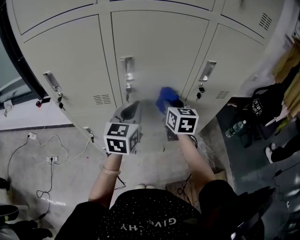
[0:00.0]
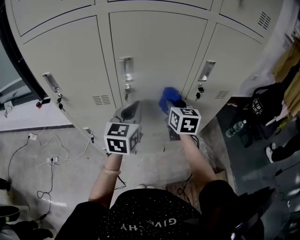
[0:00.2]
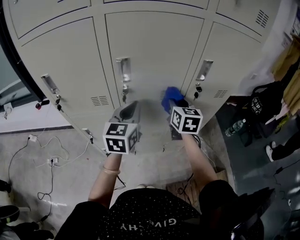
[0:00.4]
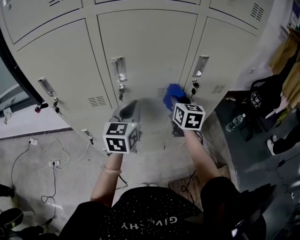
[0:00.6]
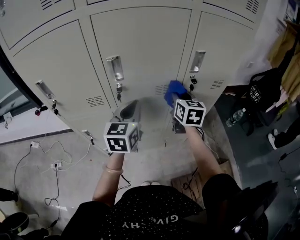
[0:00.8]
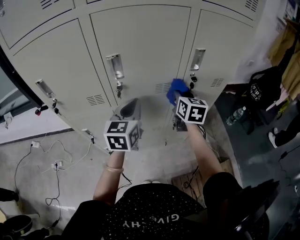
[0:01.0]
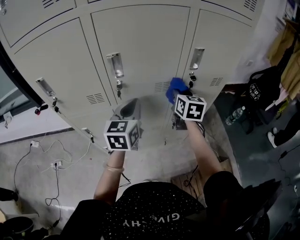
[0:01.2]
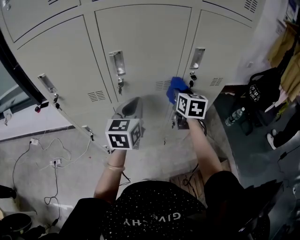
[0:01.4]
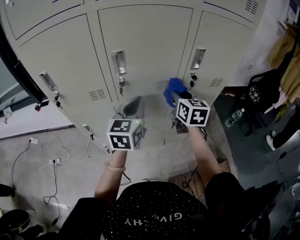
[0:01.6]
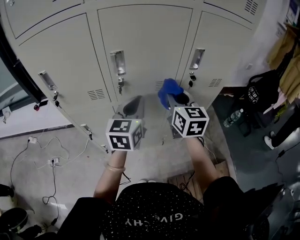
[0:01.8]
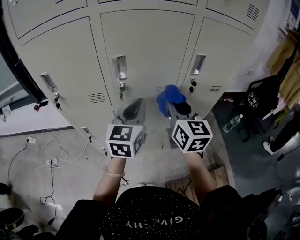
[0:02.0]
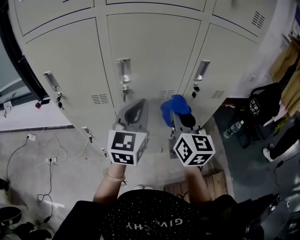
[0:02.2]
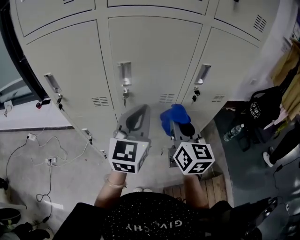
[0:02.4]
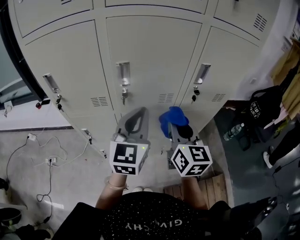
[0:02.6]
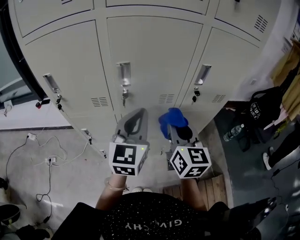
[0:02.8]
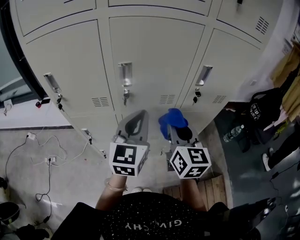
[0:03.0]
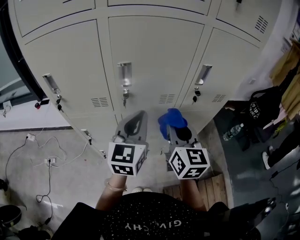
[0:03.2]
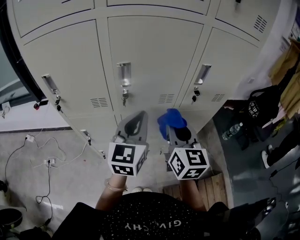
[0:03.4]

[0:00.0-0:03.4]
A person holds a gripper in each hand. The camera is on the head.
0:00.0 to 0:01.6: The right gripper travels to the right by approximately 5 cm.
0:01.6 to 0:03.4: The right gripper goes approximately 10 cm backward. The left gripper shifts by about 5 cm.

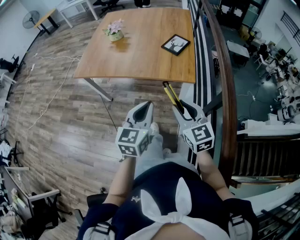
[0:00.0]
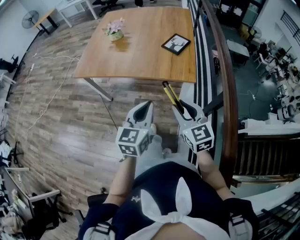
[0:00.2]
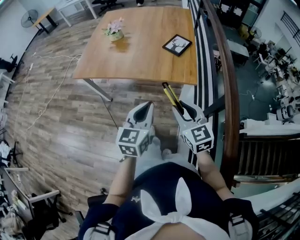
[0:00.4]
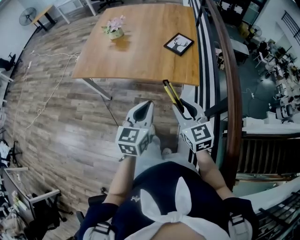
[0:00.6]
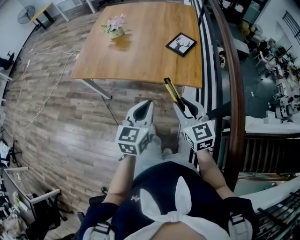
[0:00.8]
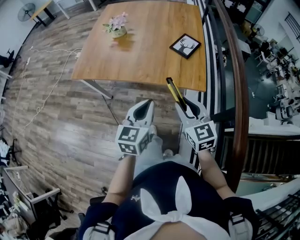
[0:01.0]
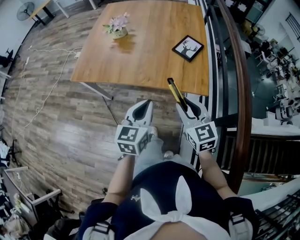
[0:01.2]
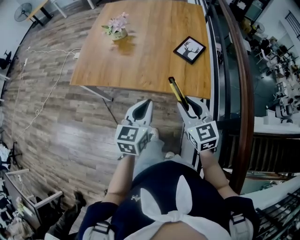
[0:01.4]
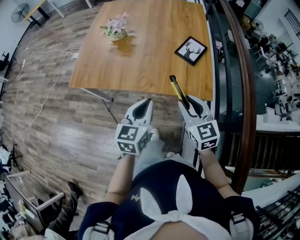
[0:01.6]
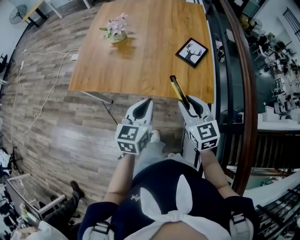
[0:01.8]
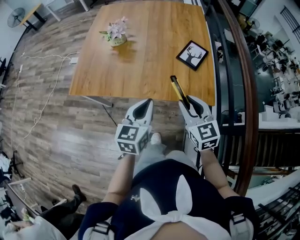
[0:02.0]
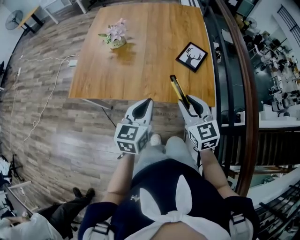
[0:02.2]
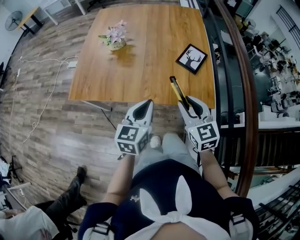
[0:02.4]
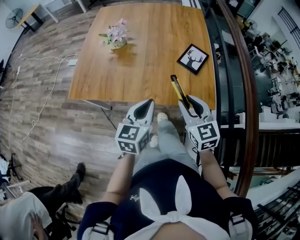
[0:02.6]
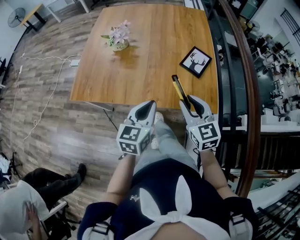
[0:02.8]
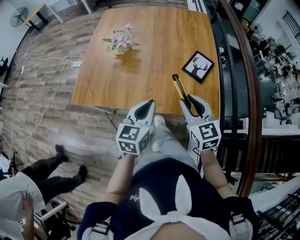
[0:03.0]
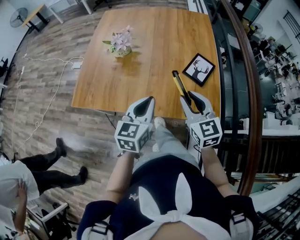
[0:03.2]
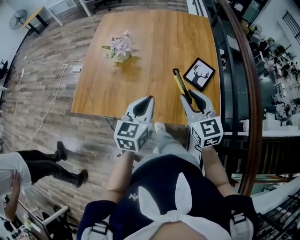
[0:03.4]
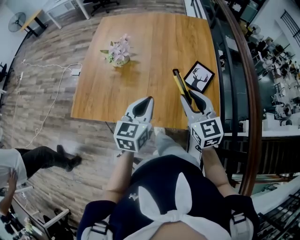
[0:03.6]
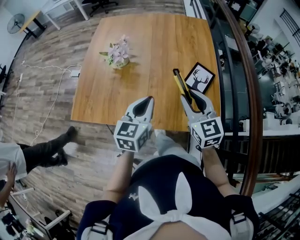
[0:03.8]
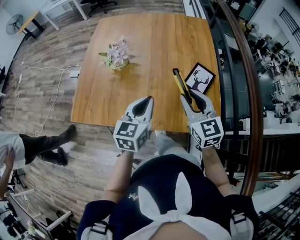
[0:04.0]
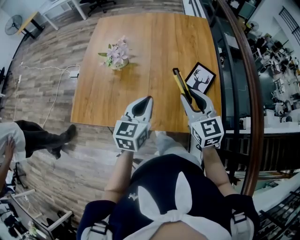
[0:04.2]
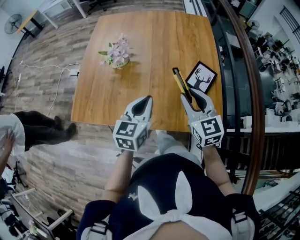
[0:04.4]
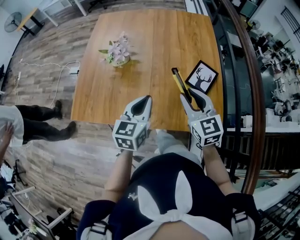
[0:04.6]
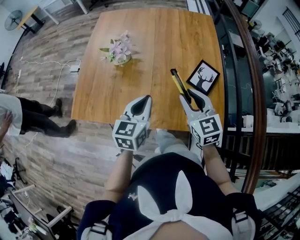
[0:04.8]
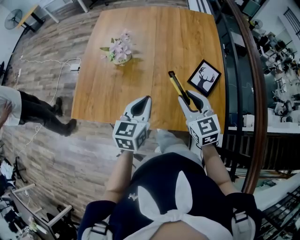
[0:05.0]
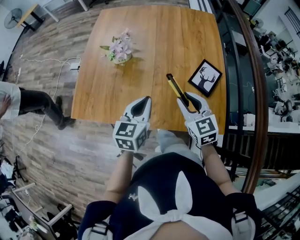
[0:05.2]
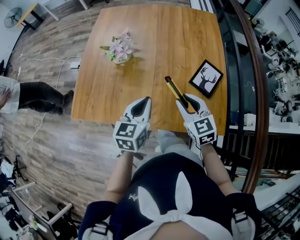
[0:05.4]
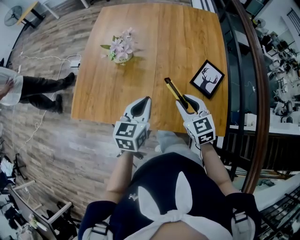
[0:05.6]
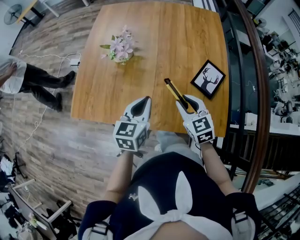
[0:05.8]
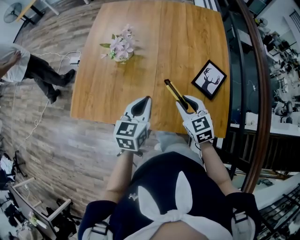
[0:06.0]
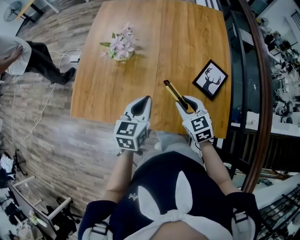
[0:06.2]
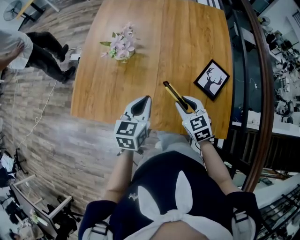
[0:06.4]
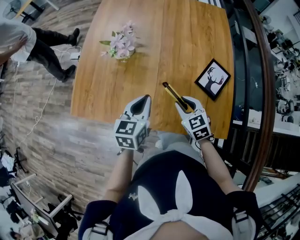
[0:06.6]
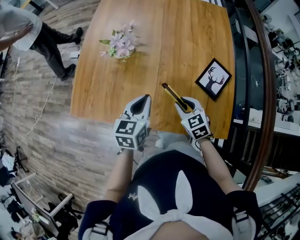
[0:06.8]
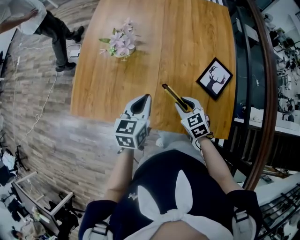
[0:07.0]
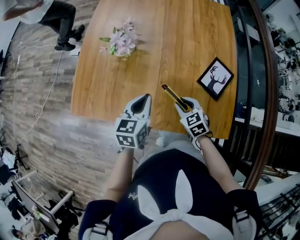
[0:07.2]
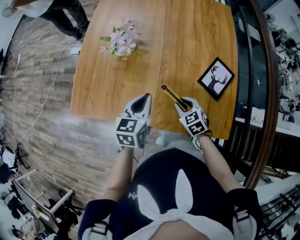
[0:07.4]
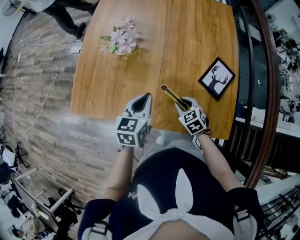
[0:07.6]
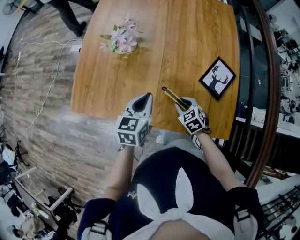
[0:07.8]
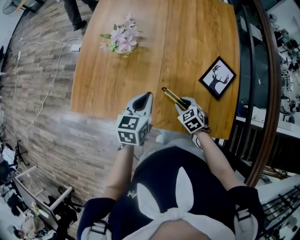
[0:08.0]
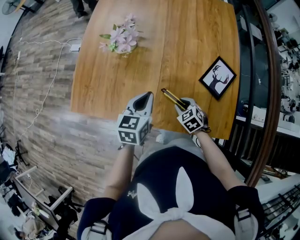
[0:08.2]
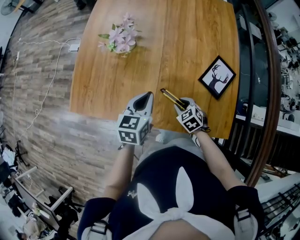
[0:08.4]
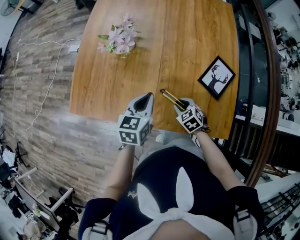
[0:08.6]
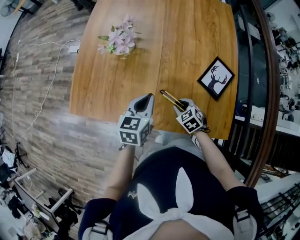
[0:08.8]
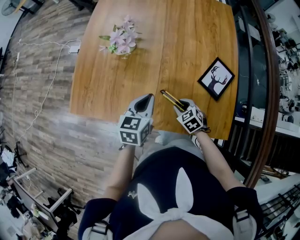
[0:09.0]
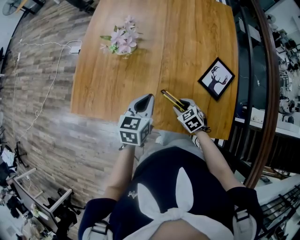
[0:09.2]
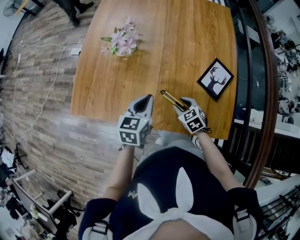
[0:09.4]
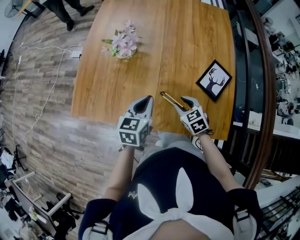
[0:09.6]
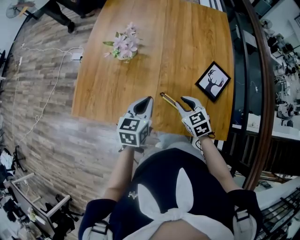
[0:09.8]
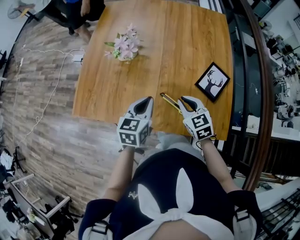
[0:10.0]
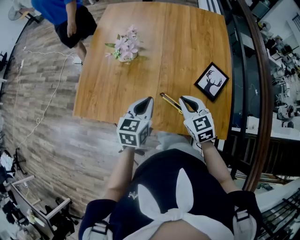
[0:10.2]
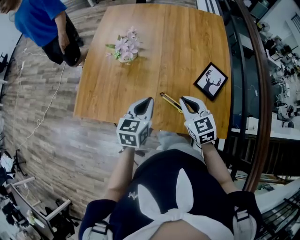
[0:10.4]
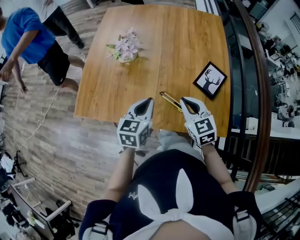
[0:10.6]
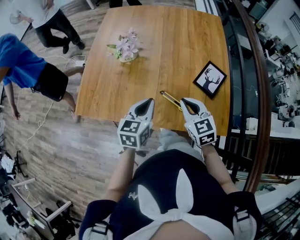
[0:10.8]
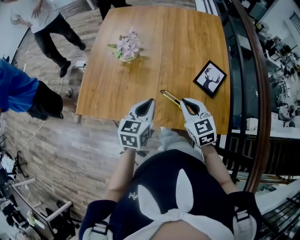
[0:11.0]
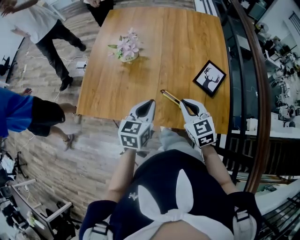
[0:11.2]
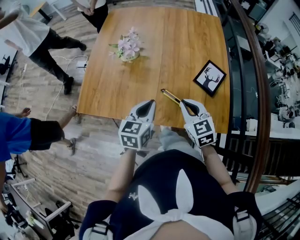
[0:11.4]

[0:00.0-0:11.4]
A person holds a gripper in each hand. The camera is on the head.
0:00.0 to 0:01.4: The right gripper goes some 20 cm forward; the left gripper goes approximately 20 cm forward and to the left.
0:01.4 to 0:02.8: The grippers both shift forward by roughly 10 cm.
0:02.8 to 0:04.2: The grippers both shift forward by some 15 cm.
0:04.2 to 0:05.6: The left gripper shifts by about 5 cm; the right gripper heads downward, covering approximately 10 cm.
0:05.6 to 0:07.2: The left gripper moves about 5 cm, while the right gripper is displaced downward by about 15 cm.
0:07.2 to 0:08.6: The right gripper goes roughly 5 cm downward.
0:08.6 to 0:10.0: The right gripper is displaced upward by some 15 cm, and changes its angle by some 20 degrees.
0:10.0 to 0:11.4: The left gripper shifts some 5 cm backward. The right gripper heads backward and upward, covering roughly 10 cm.

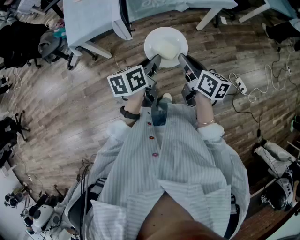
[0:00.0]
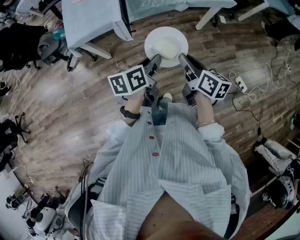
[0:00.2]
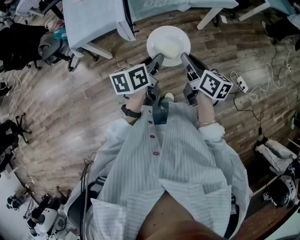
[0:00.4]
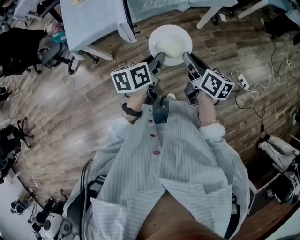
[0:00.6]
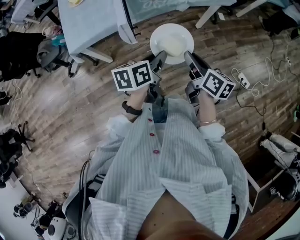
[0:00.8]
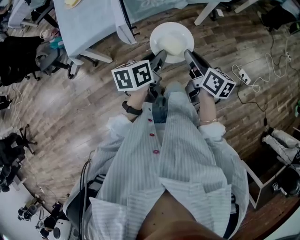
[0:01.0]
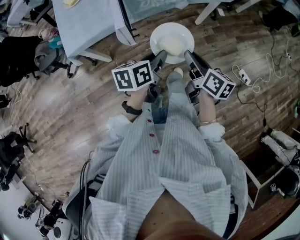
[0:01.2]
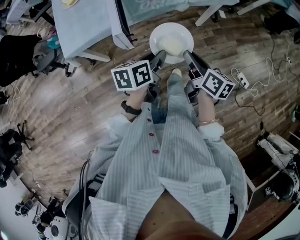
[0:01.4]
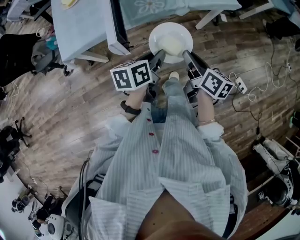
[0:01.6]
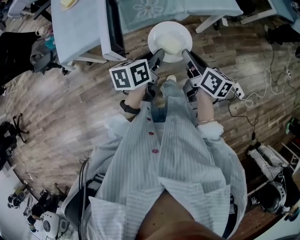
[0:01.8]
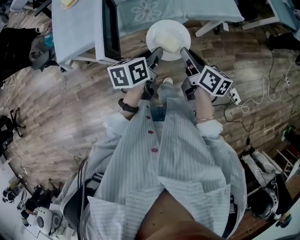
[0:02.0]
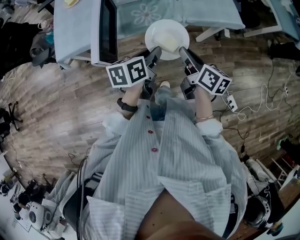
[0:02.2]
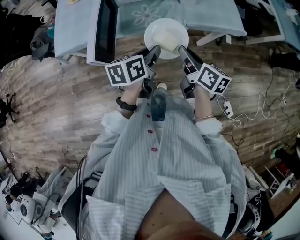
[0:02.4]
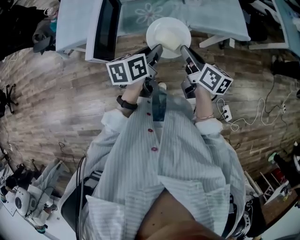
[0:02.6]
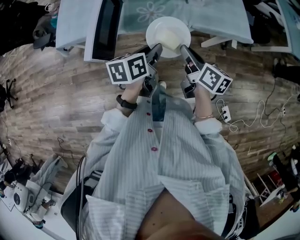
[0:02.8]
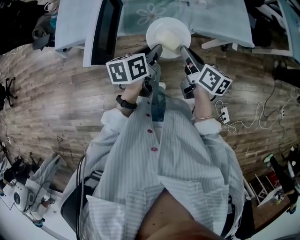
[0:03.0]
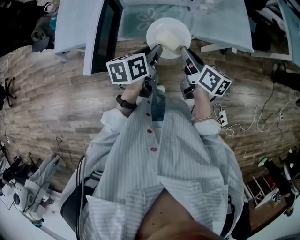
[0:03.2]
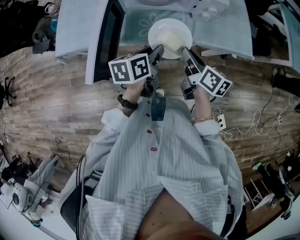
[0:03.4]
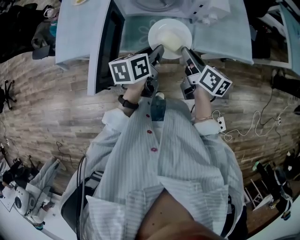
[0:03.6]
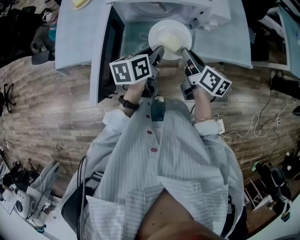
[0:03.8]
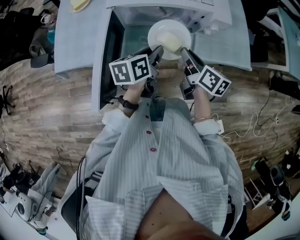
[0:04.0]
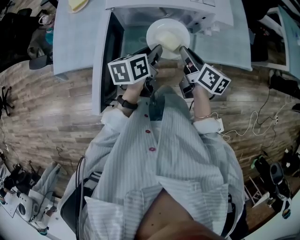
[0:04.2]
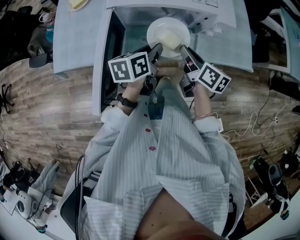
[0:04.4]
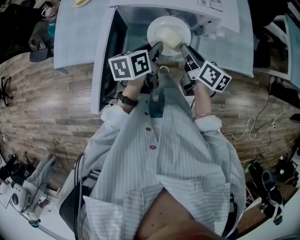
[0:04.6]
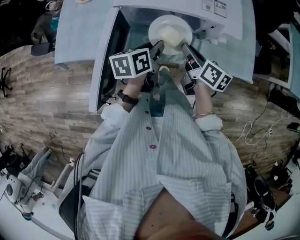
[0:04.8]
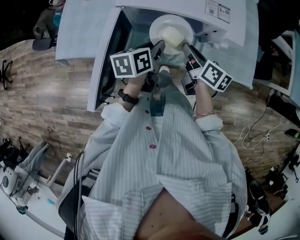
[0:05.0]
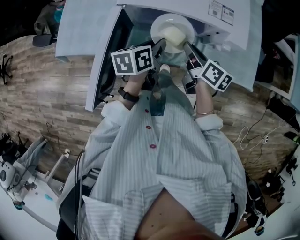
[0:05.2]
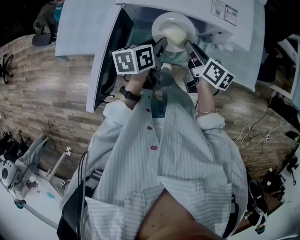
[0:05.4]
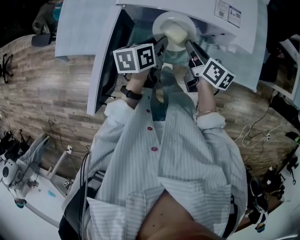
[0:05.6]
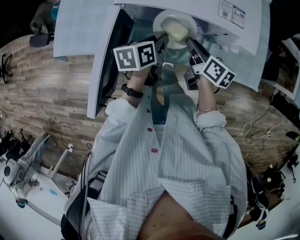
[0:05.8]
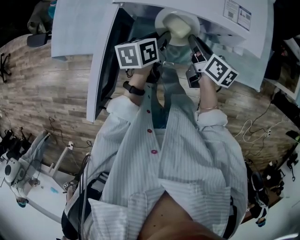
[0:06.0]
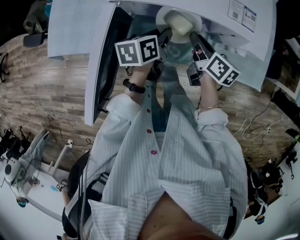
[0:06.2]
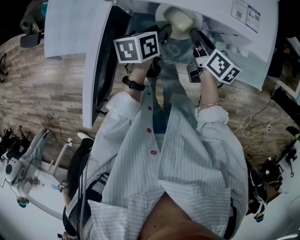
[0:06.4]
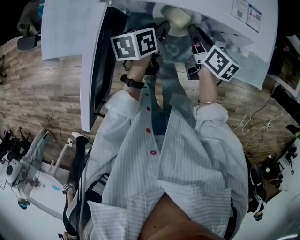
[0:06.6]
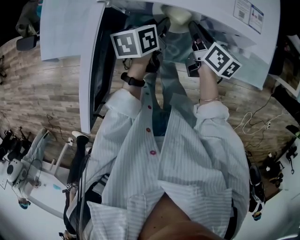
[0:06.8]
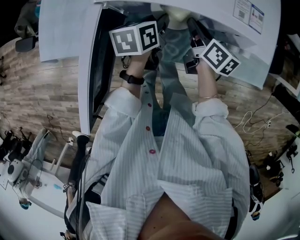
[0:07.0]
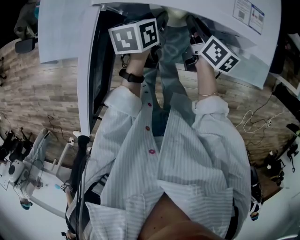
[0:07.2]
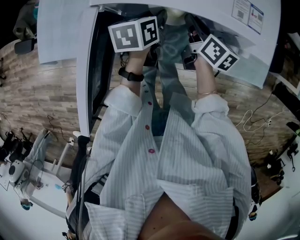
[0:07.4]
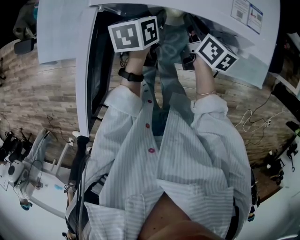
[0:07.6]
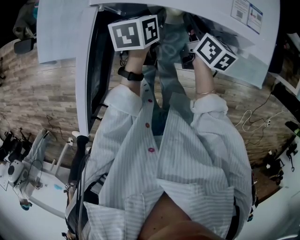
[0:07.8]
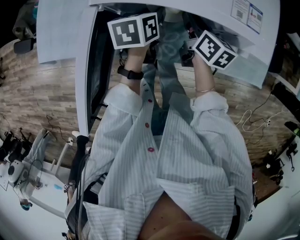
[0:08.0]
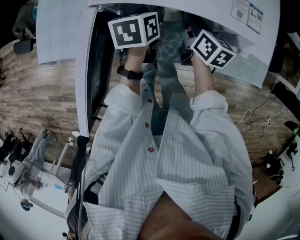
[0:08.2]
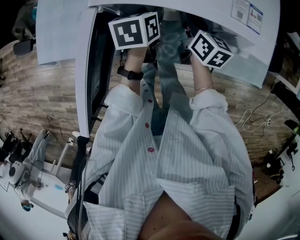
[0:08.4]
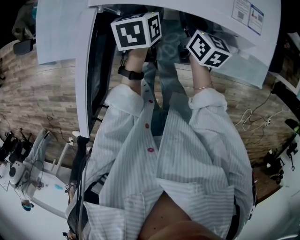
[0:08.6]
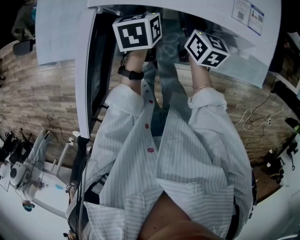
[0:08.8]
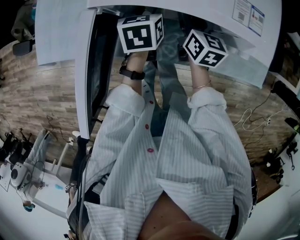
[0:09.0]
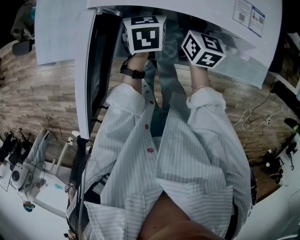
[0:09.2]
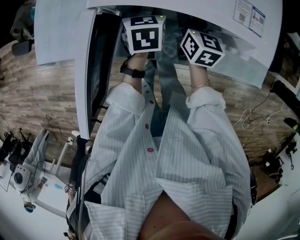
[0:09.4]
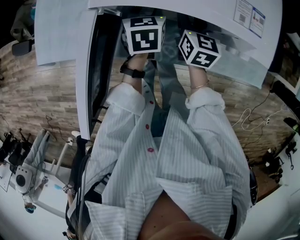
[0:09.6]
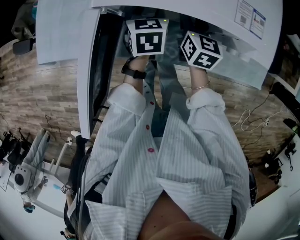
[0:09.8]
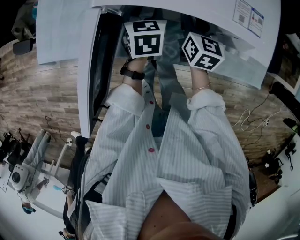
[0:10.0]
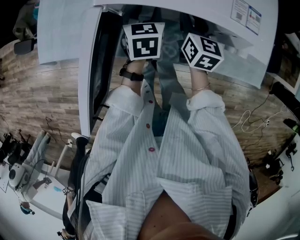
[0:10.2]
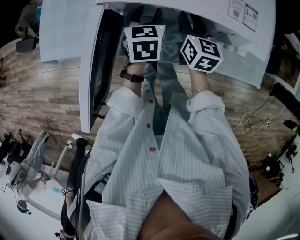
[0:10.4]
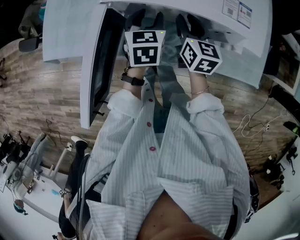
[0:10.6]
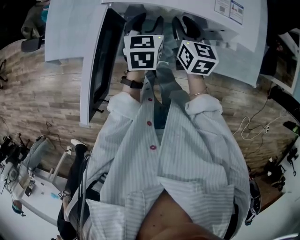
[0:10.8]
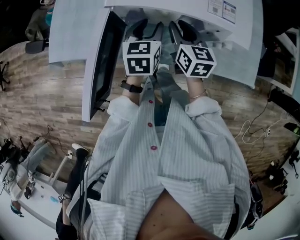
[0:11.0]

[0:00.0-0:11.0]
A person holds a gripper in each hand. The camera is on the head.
0:00.0 to 0:01.6: The two grippers go some 10 cm forward.
0:01.6 to 0:03.2: Both grippers travel together forward, about 20 cm.
0:03.2 to 0:04.8: The grippers both shift forward by some 15 cm.
0:04.8 to 0:06.2: The two grippers go roughly 10 cm downward and forward.
0:06.2 to 0:07.8: Both grippers move forward, about 5 cm.
0:07.8 to 0:09.4: The right gripper swivels some 20 degrees; the left gripper swivels some 20 degrees.
0:09.4 to 0:11.0: Both grippers travel together upward and backward, approximately 10 cm.
